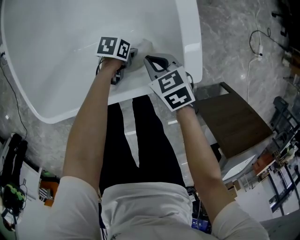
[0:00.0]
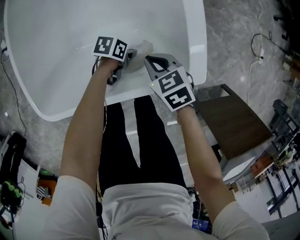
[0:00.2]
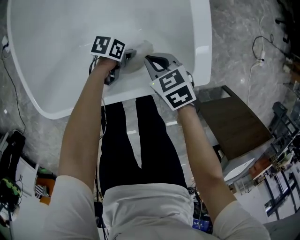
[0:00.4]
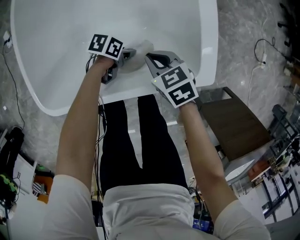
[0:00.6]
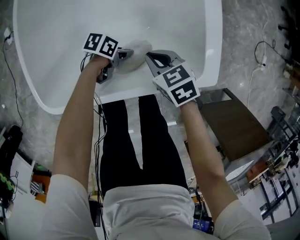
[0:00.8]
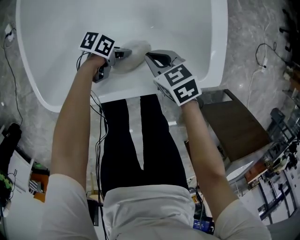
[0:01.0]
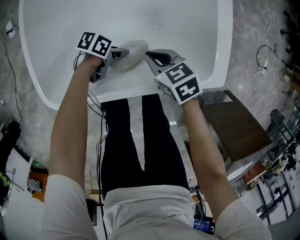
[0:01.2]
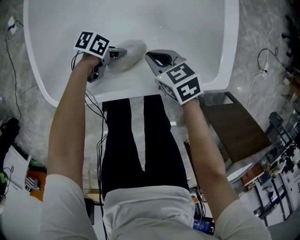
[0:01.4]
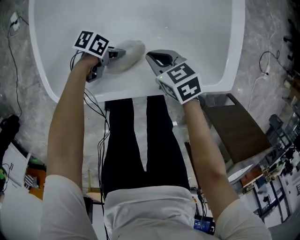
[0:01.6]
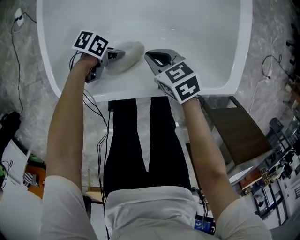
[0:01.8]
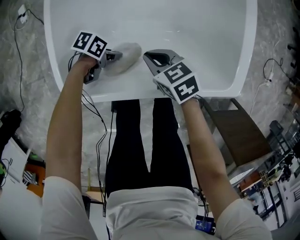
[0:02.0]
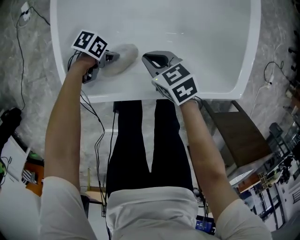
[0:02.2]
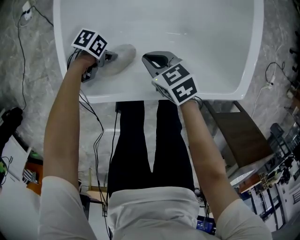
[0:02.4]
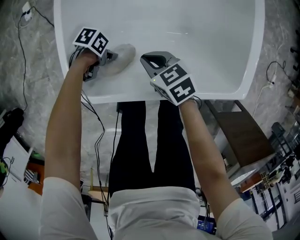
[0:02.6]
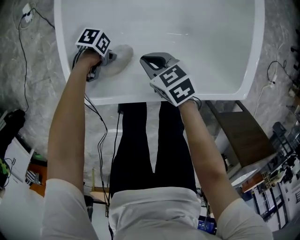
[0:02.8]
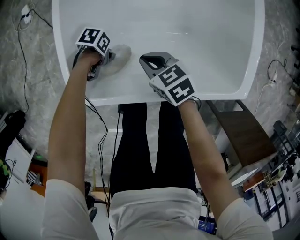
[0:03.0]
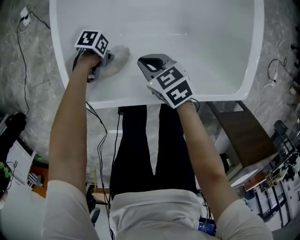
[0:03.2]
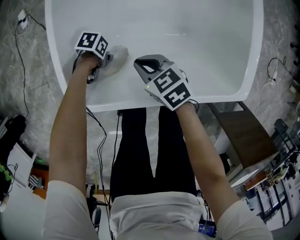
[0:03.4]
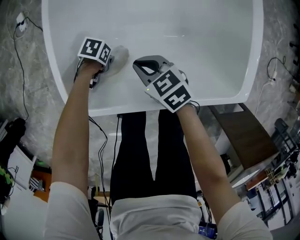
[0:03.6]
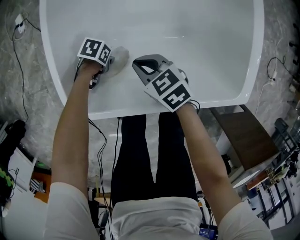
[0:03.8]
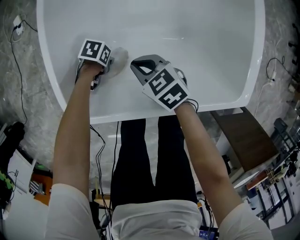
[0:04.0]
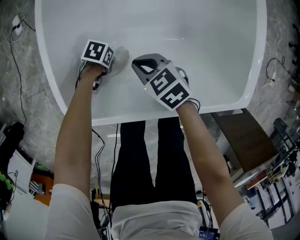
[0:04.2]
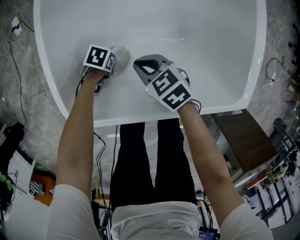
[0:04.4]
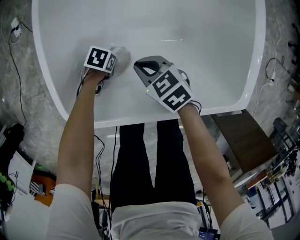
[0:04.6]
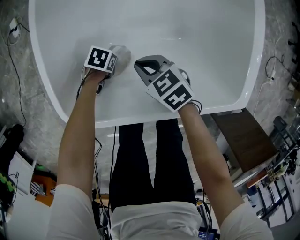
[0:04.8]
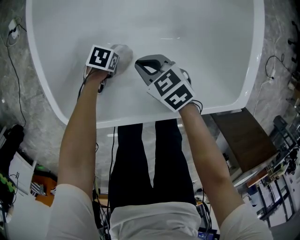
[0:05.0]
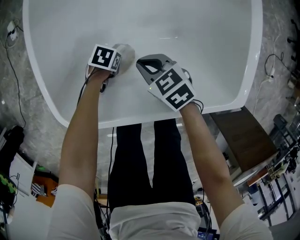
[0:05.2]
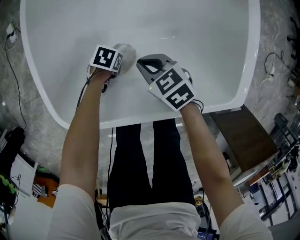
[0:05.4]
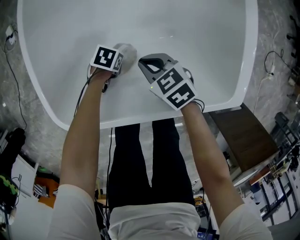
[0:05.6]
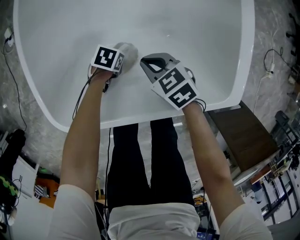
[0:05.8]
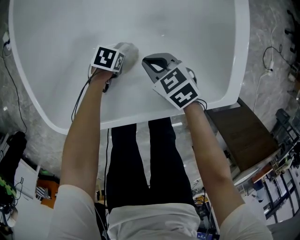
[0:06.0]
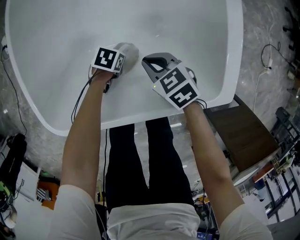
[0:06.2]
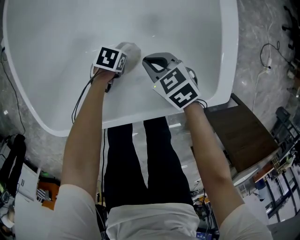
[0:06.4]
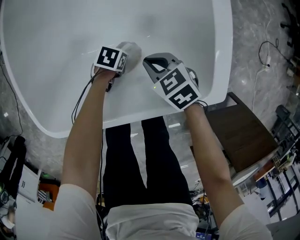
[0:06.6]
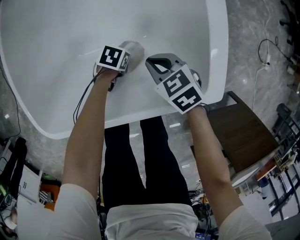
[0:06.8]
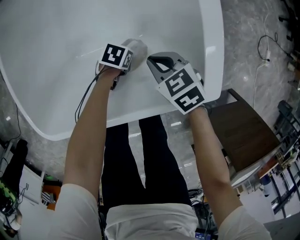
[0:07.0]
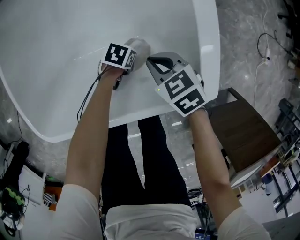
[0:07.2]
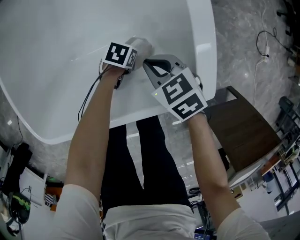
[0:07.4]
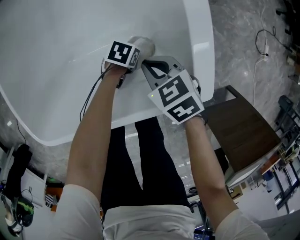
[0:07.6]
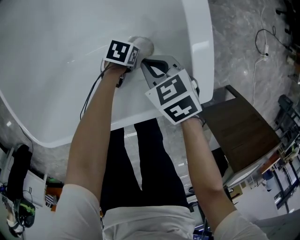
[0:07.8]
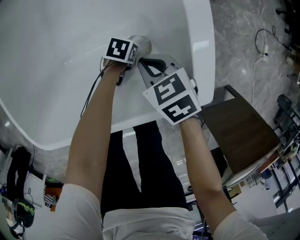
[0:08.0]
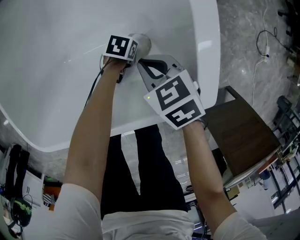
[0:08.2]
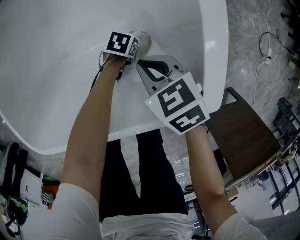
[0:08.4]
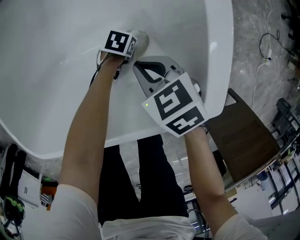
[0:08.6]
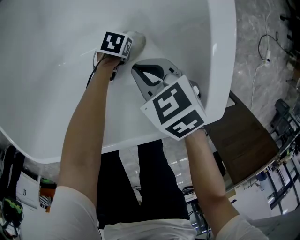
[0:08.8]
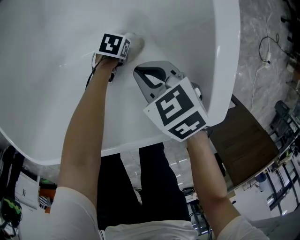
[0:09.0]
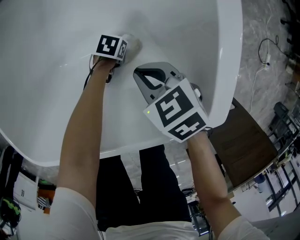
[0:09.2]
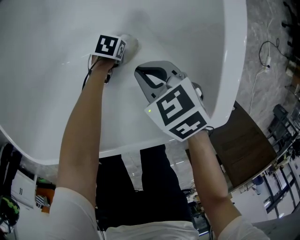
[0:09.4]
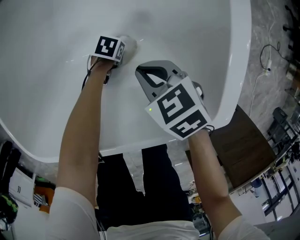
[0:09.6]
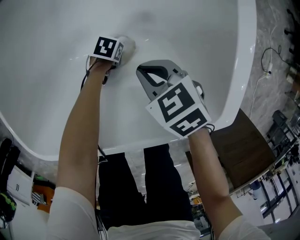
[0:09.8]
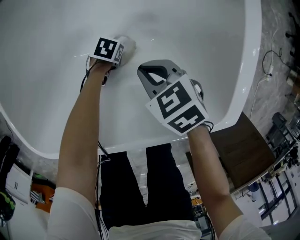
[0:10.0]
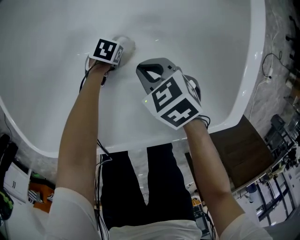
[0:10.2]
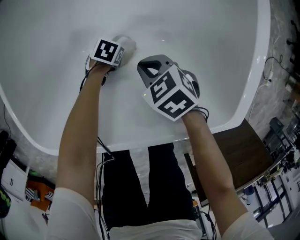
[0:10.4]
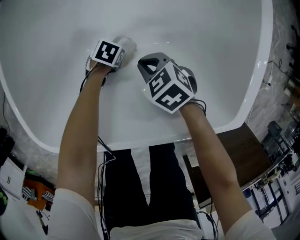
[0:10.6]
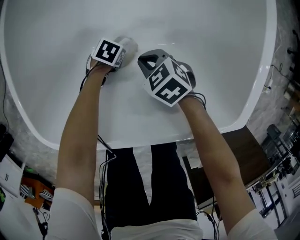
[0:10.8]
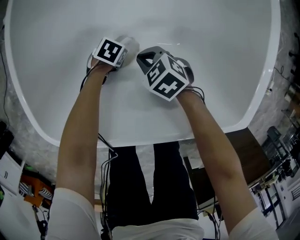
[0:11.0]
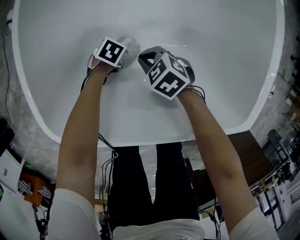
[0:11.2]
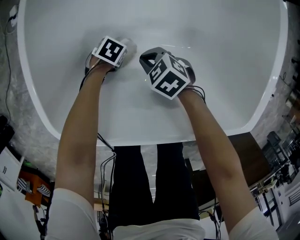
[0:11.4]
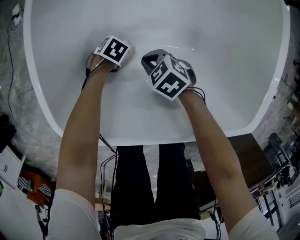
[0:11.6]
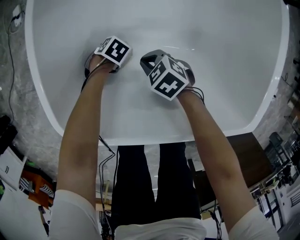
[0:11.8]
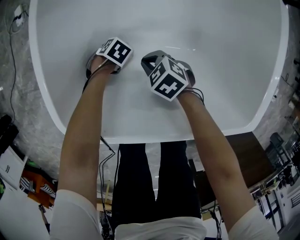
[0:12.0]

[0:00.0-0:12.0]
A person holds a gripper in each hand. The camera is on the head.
0:00.0 to 0:01.6: The right gripper moves some 20 cm.
0:01.6 to 0:03.0: The right gripper ends up approximately 10 cm from where it was.
0:04.4 to 0:06.0: The right gripper changes place by about 15 cm.
0:06.0 to 0:07.6: The right gripper changes place by roughly 15 cm.
0:07.6 to 0:09.0: The right gripper ends up roughly 5 cm from where it was.
0:09.0 to 0:10.4: The right gripper shifts by about 10 cm.
0:10.4 to 0:12.0: The right gripper changes place by some 15 cm.

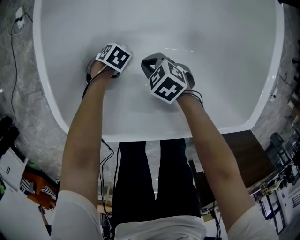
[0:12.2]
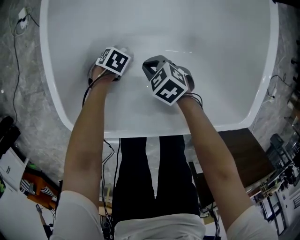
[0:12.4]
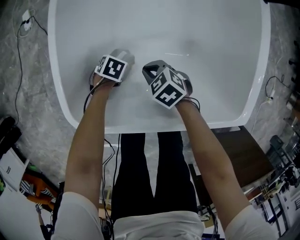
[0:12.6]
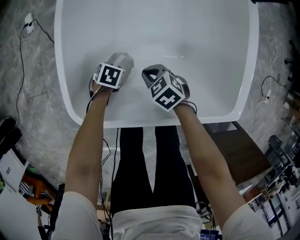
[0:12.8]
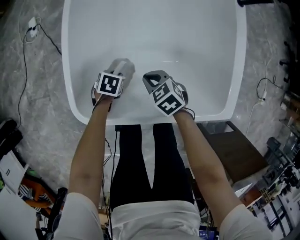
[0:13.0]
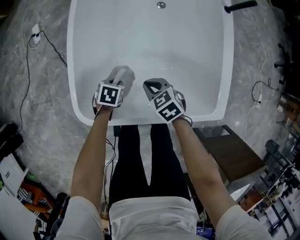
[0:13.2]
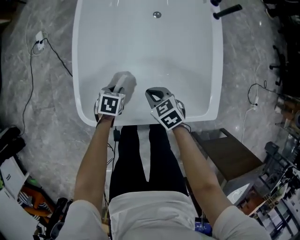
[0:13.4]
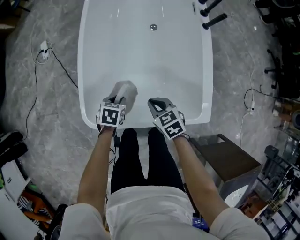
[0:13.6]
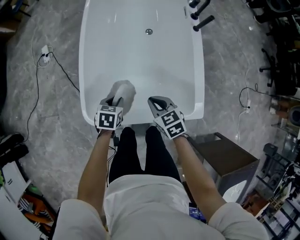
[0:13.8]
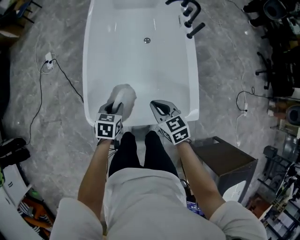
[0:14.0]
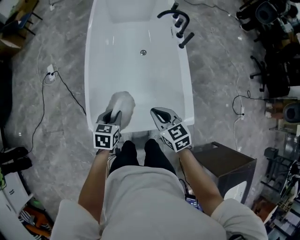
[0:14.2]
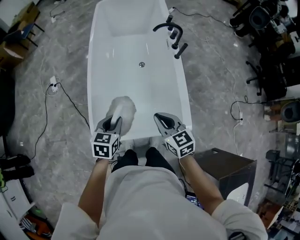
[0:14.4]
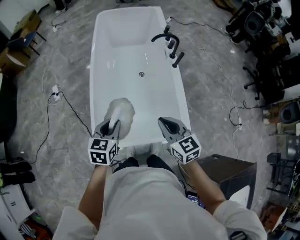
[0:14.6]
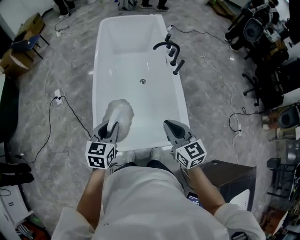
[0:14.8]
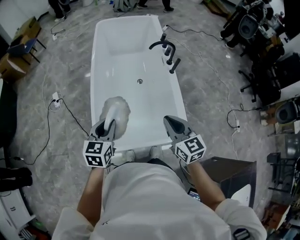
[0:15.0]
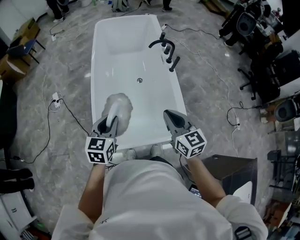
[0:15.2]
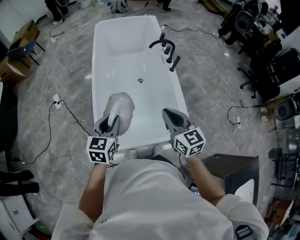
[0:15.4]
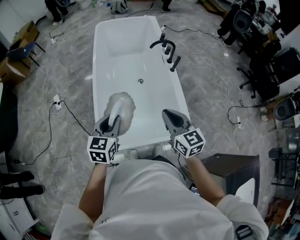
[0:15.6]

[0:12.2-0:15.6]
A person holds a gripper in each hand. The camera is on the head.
0:12.2 to 0:13.8: The right gripper goes about 35 cm upward, and swivels roughly 30 degrees.
0:13.8 to 0:15.6: The right gripper goes about 30 cm upward, and changes its angle by some 40 degrees.

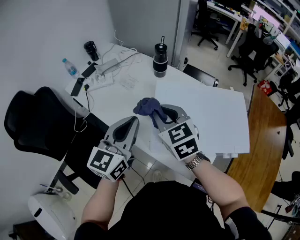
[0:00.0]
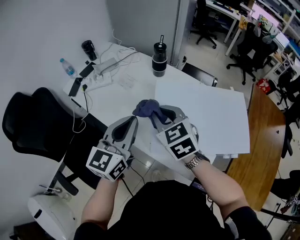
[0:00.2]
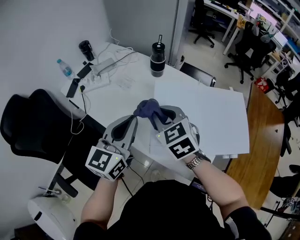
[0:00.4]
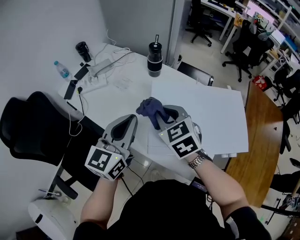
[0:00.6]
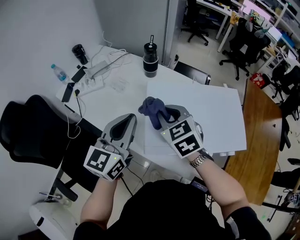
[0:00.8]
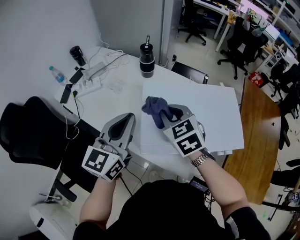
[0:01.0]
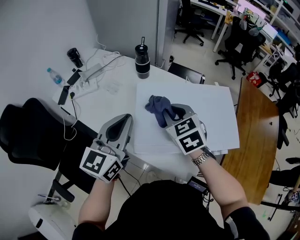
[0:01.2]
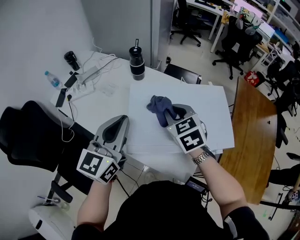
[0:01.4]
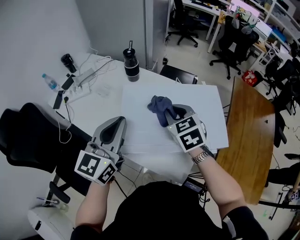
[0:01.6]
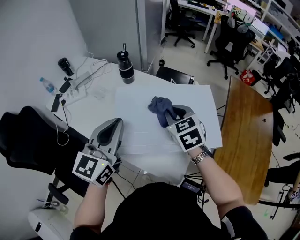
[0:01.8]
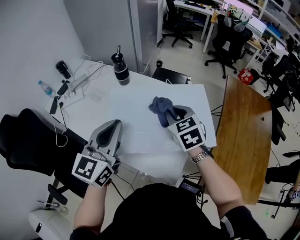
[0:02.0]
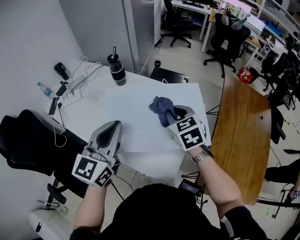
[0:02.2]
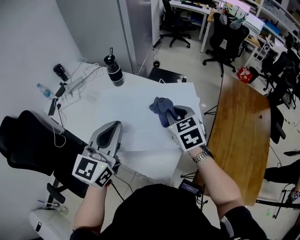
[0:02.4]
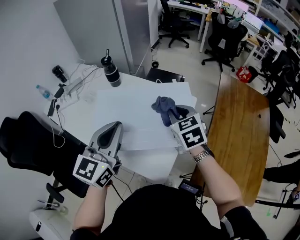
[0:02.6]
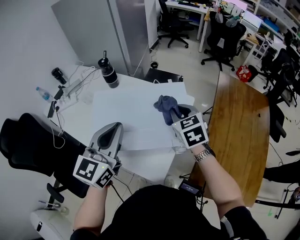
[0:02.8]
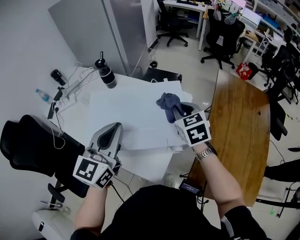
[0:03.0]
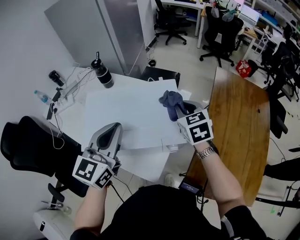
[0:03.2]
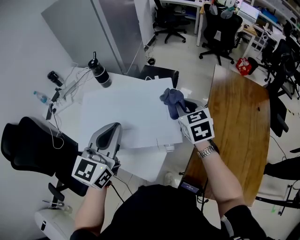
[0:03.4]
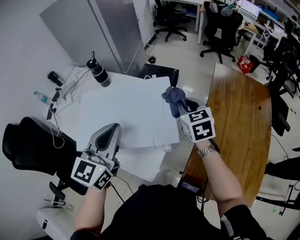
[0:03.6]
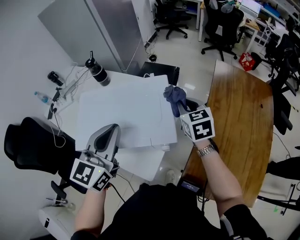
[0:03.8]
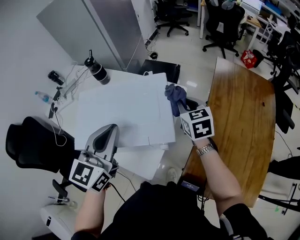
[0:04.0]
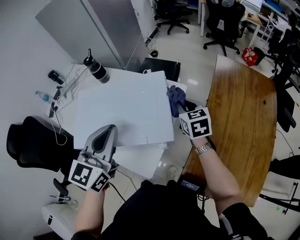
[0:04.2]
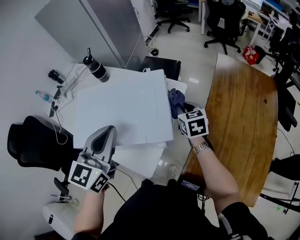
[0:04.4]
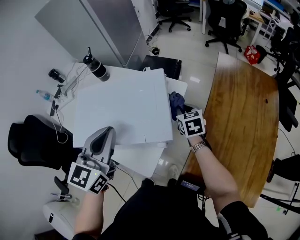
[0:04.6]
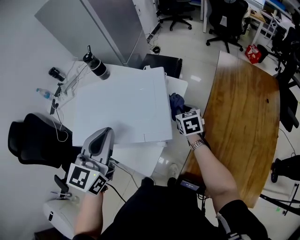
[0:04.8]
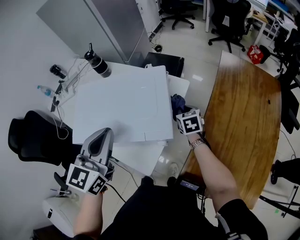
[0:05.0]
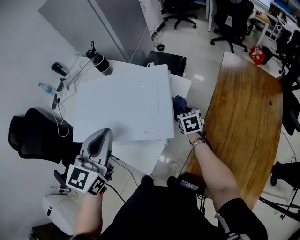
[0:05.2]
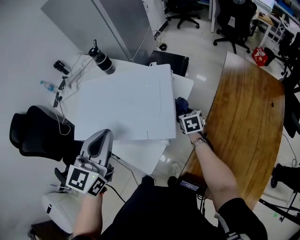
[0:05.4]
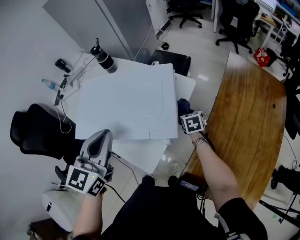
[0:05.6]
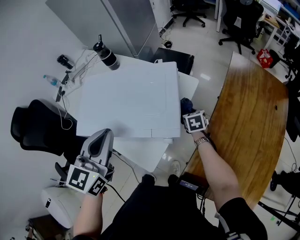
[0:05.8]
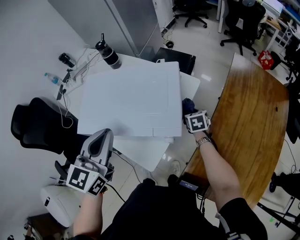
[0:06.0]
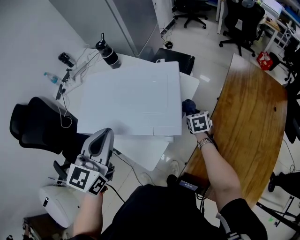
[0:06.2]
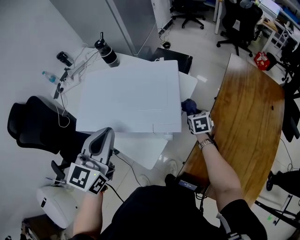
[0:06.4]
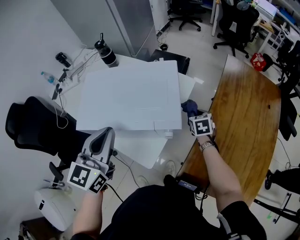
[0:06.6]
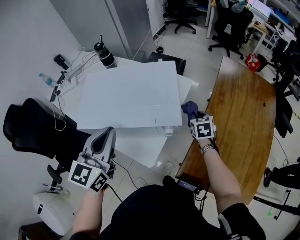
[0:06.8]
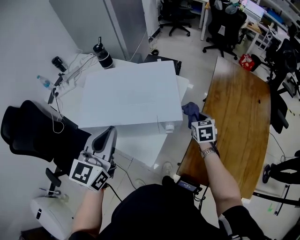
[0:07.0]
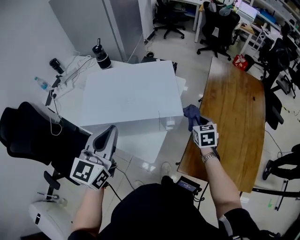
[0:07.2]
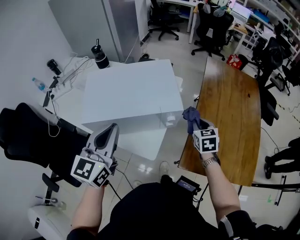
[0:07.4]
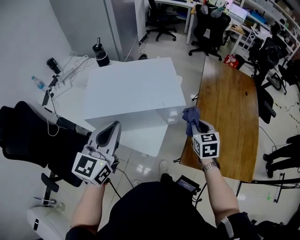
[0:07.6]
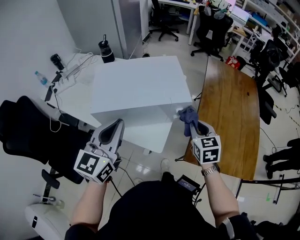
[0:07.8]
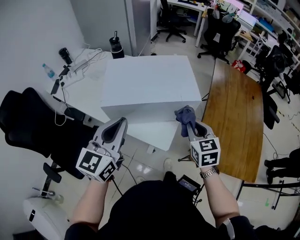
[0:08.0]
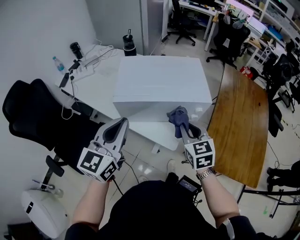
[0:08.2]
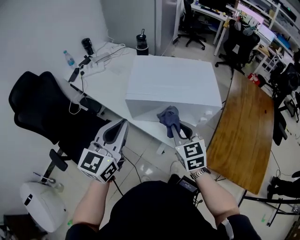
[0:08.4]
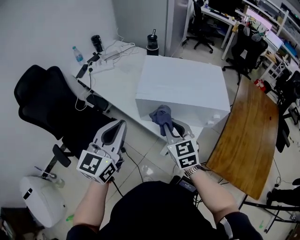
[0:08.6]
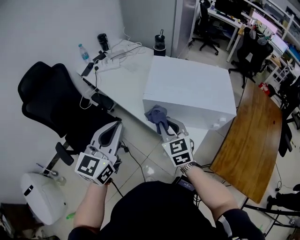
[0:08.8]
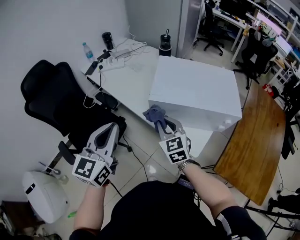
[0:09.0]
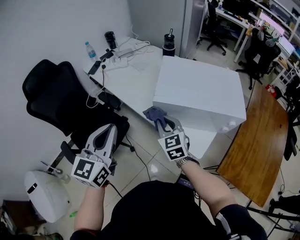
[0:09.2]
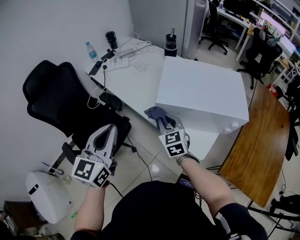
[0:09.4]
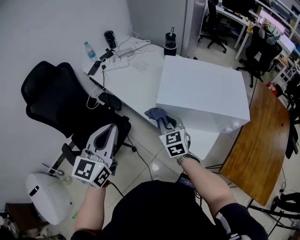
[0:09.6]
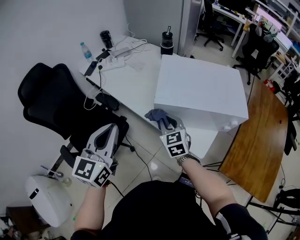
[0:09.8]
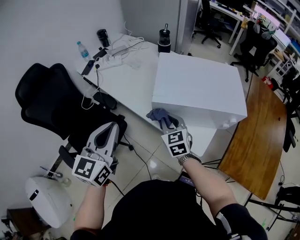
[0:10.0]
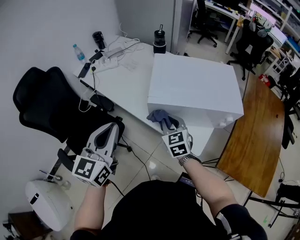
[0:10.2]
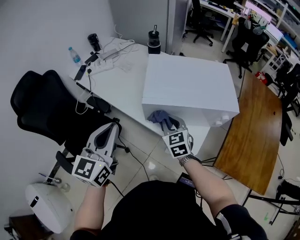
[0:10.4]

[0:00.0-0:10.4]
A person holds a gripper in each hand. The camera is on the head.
0:00.0 to 0:01.4: The right gripper goes roughly 15 cm to the right. The left gripper shifts about 5 cm to the right.
0:01.4 to 0:03.0: The grippers both shift to the right by about 25 cm.
0:03.0 to 0:04.4: The left gripper goes some 10 cm to the right, while the right gripper is displaced downward and to the right by approximately 15 cm.
0:04.4 to 0:06.0: The left gripper moves some 5 cm; the right gripper heads downward, covering about 15 cm.
0:06.0 to 0:07.4: The right gripper moves backward and upward, approximately 25 cm. Meanwhile the left gripper moves backward, some 5 cm.
0:07.4 to 0:09.0: The left gripper changes place by about 30 cm; the right gripper moves some 50 cm, and swivels about 40 degrees.
0:09.0 to 0:10.4: The right gripper ends up roughly 10 cm from where it was.
